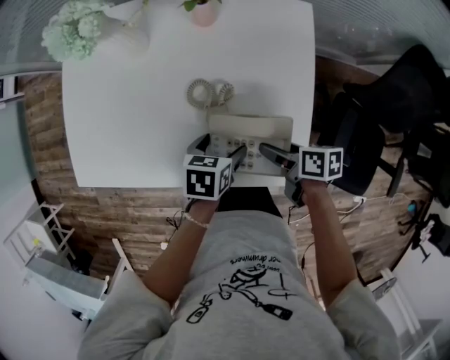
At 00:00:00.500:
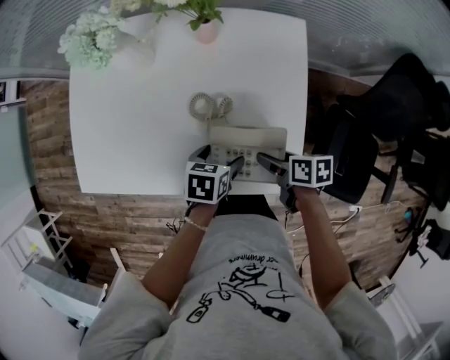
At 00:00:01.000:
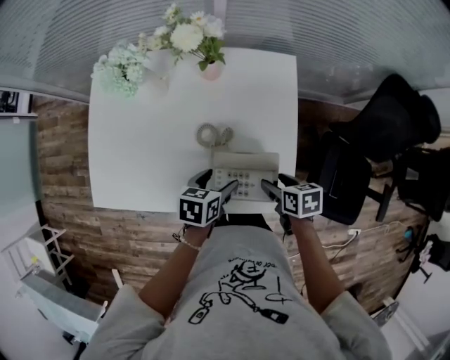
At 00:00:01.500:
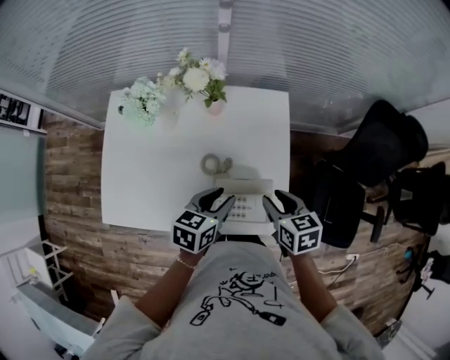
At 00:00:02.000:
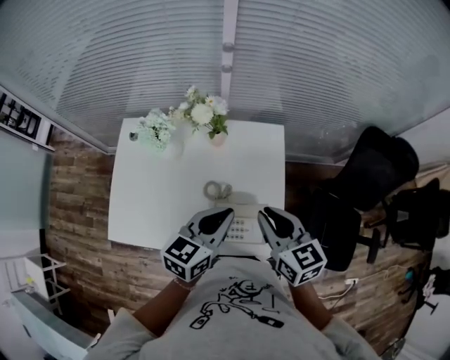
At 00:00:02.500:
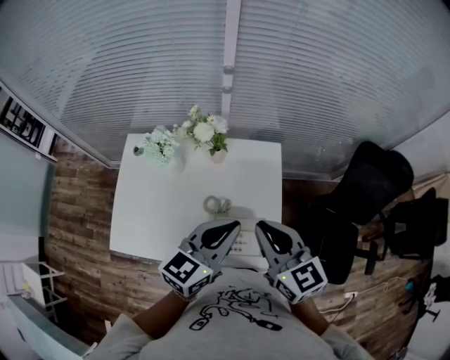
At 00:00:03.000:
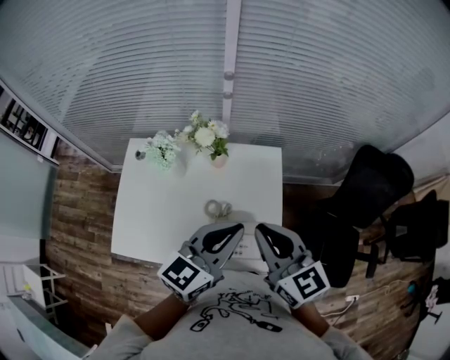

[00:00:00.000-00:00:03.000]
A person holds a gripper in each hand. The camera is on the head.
00:00:00.000 to 00:00:01.500: The grippers both shift upward by roughly 15 cm. The right gripper swivels some 40 degrees, and closes its fingers, while the left gripper changes its angle by some 20 degrees, and closes.
00:00:01.500 to 00:00:03.000: Both grippers travel together upward, some 25 cm. The left gripper swivels approximately 30 degrees, and closes up. The right gripper angles its fingers upward, by about 30 degrees, and closes.

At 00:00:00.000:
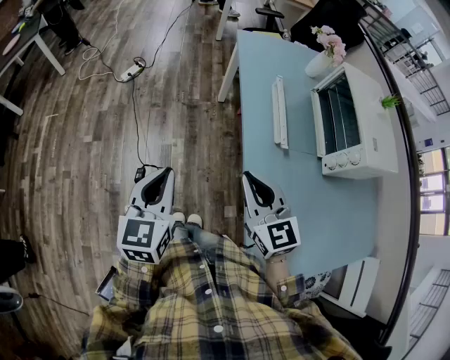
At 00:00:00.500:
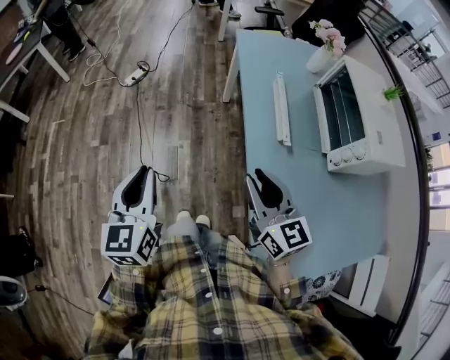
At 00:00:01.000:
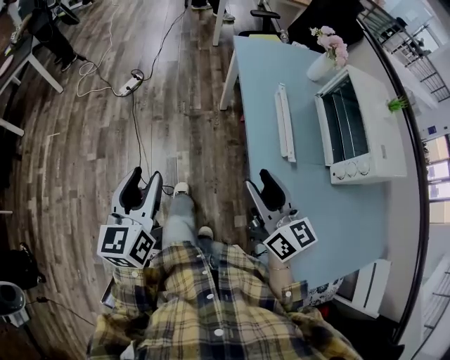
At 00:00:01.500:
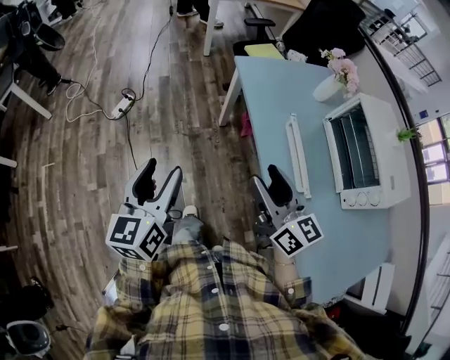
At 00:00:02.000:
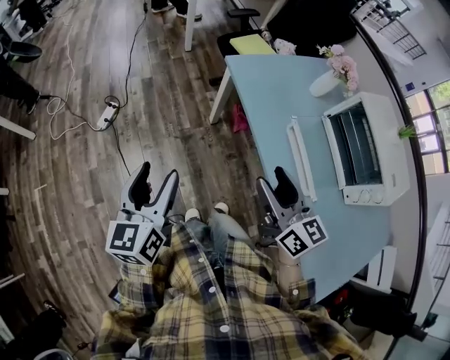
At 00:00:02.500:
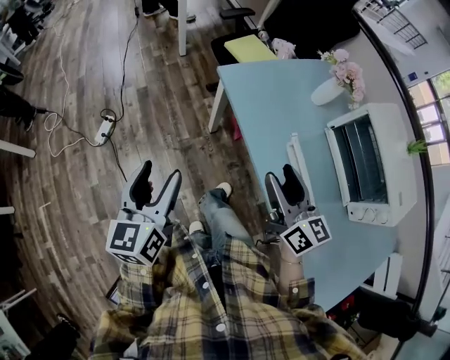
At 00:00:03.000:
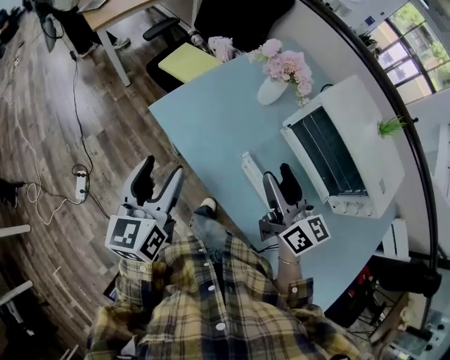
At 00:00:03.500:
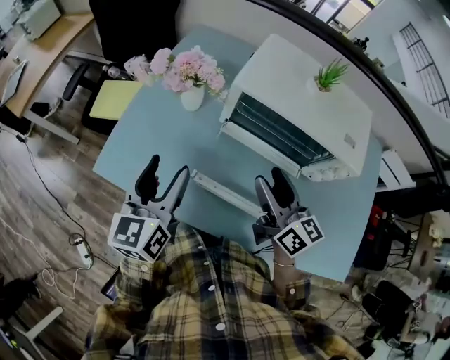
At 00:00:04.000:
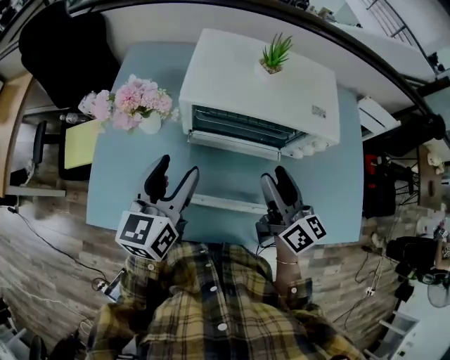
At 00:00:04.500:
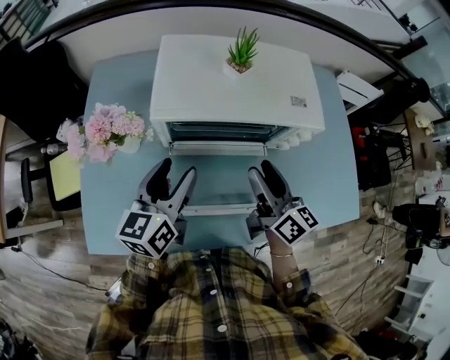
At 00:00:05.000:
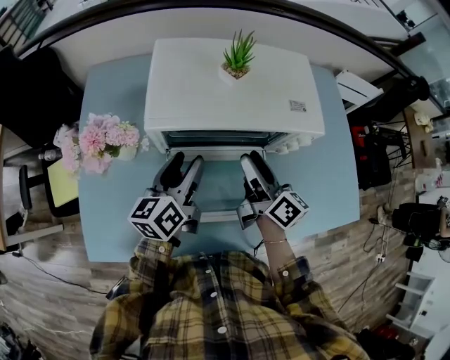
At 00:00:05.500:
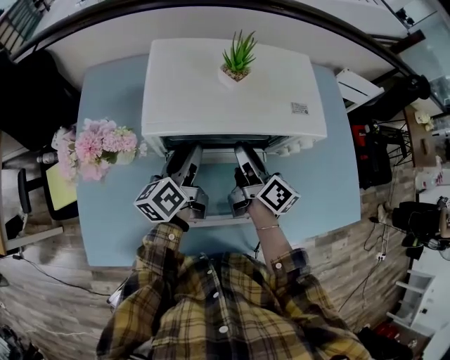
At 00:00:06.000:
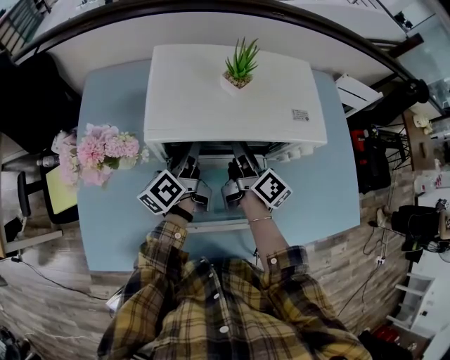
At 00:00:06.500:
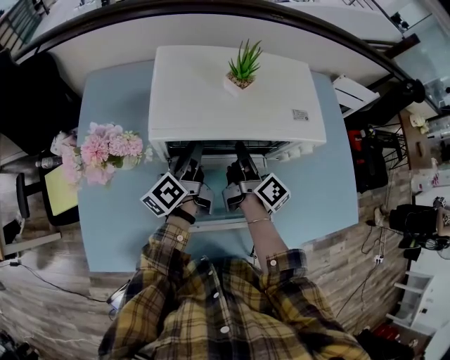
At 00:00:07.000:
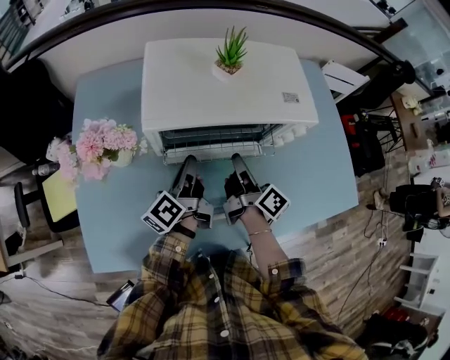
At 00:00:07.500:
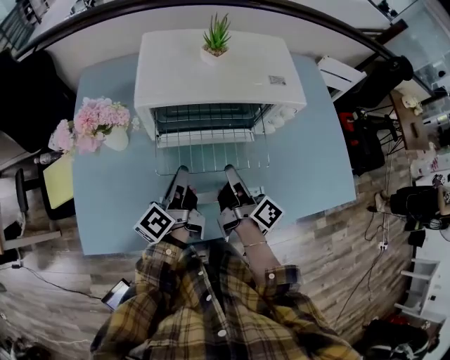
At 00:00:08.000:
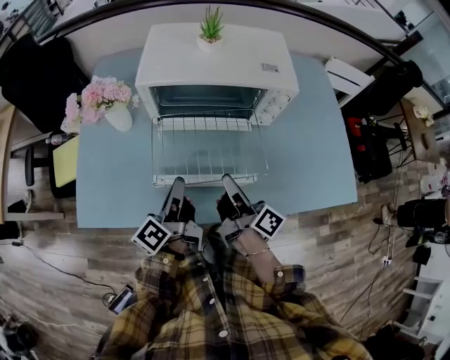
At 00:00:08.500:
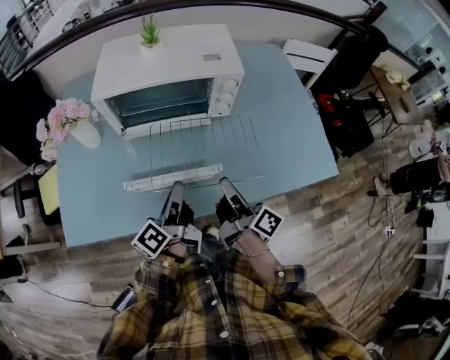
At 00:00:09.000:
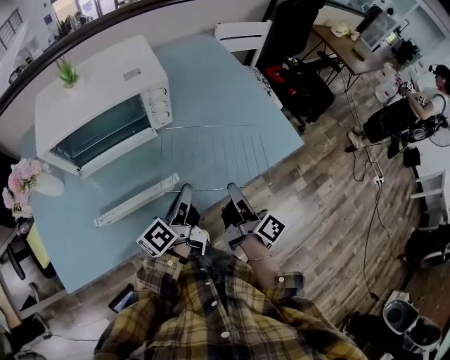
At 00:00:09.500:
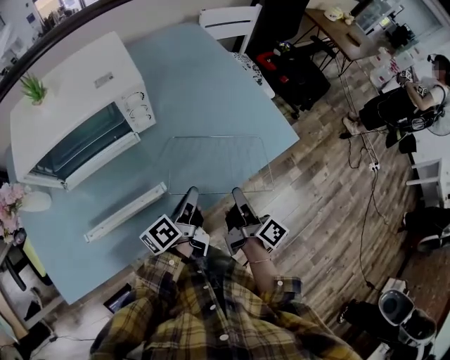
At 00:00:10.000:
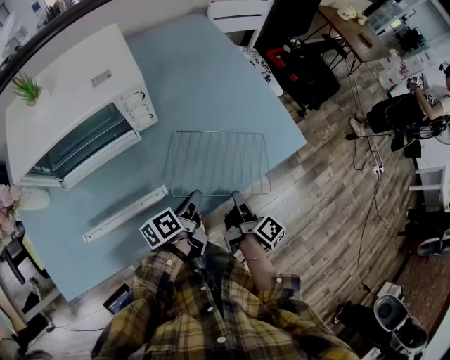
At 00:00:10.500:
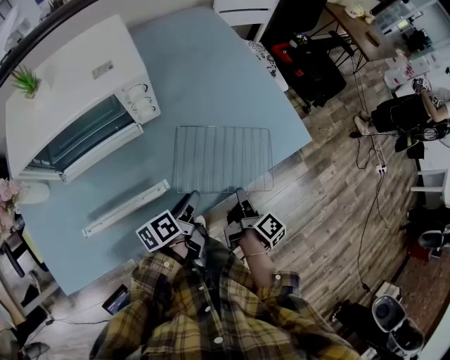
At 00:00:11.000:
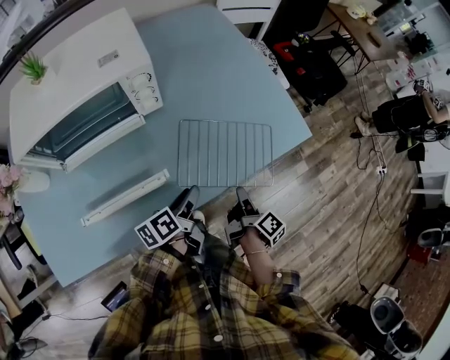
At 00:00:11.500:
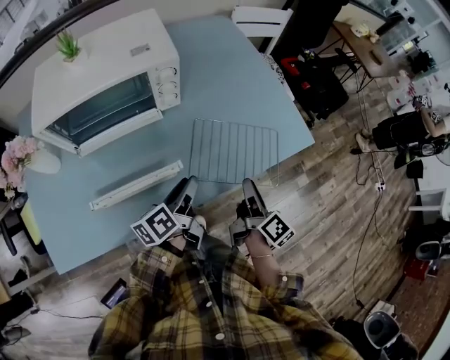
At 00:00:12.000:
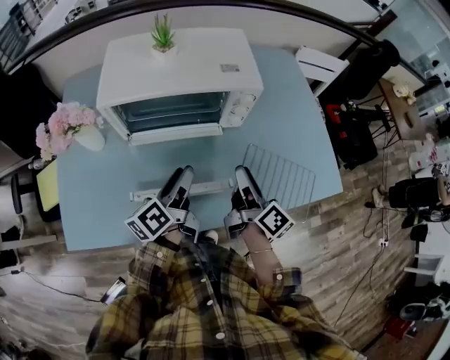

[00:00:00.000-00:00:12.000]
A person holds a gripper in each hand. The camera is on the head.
00:00:00.000 to 00:00:02.000: The grippers both shift forward by about 30 cm. The left gripper opens its fingers. The right gripper rotates some 30 degrees, and opens up.
00:00:02.000 to 00:00:04.000: The right gripper moves some 35 cm, and turns by about 70 degrees. Meanwhile the left gripper shifts by about 60 cm, and turns by approximately 70 degrees.
00:00:04.000 to 00:00:06.000: Both grippers travel together forward and downward, some 20 cm. The left gripper rotates around the line of its fingers by roughly 40 degrees, counterclockwise from behind, and closes up; the right gripper turns by roughly 30 degrees.
00:00:06.000 to 00:00:08.000: The two grippers go roughly 25 cm backward. The right gripper closes up, while the left gripper closes.
00:00:08.000 to 00:00:10.000: The left gripper moves roughly 35 cm, and rotates roughly 50 degrees. The right gripper ends up about 35 cm from where it was, and swivels about 50 degrees.
00:00:10.000 to 00:00:12.000: The right gripper changes place by approximately 25 cm, swivels approximately 40 degrees, and opens up. The left gripper shifts by about 25 cm, rotates about 30 degrees, and opens its fingers.

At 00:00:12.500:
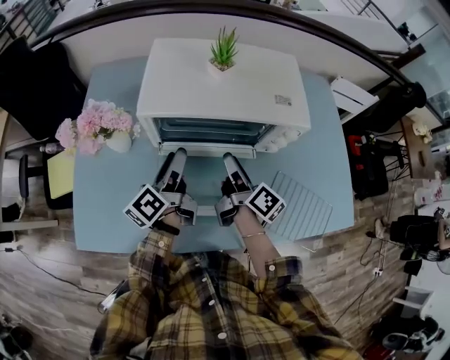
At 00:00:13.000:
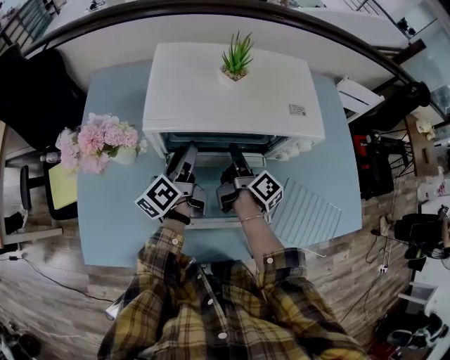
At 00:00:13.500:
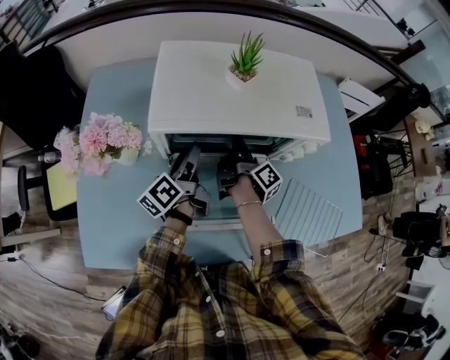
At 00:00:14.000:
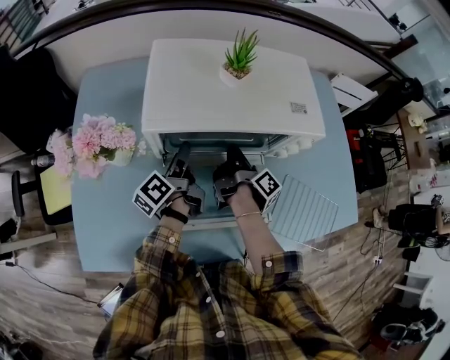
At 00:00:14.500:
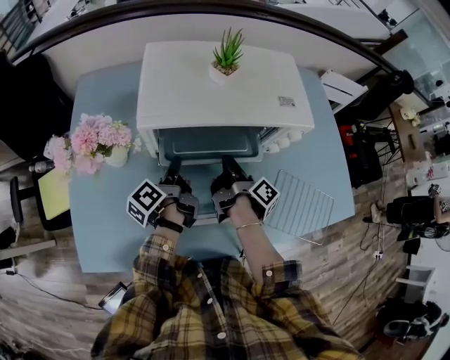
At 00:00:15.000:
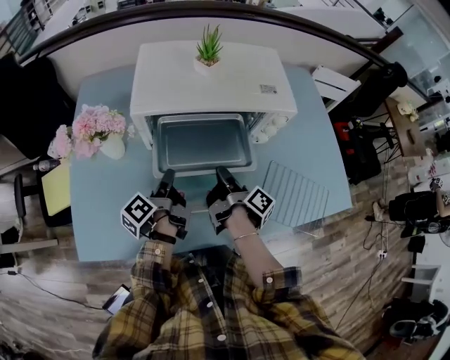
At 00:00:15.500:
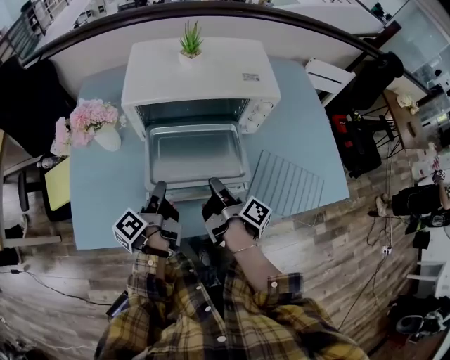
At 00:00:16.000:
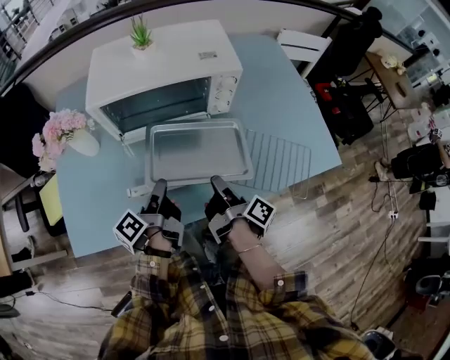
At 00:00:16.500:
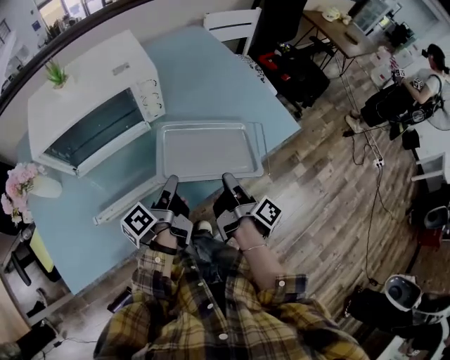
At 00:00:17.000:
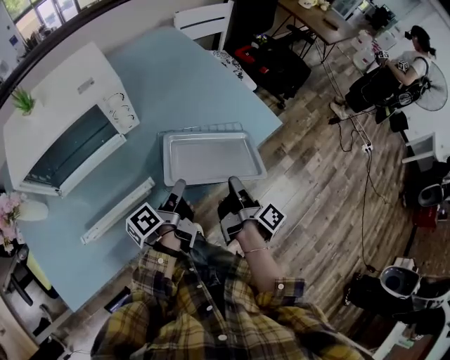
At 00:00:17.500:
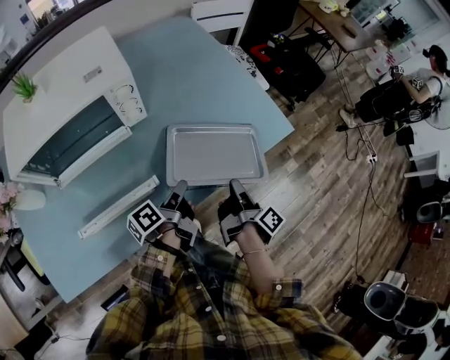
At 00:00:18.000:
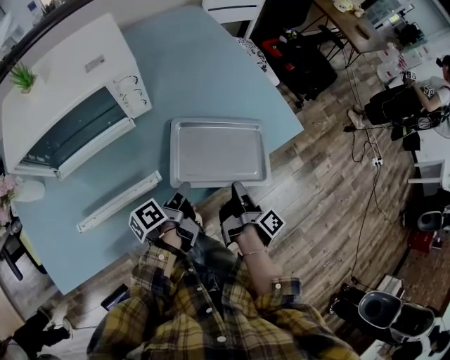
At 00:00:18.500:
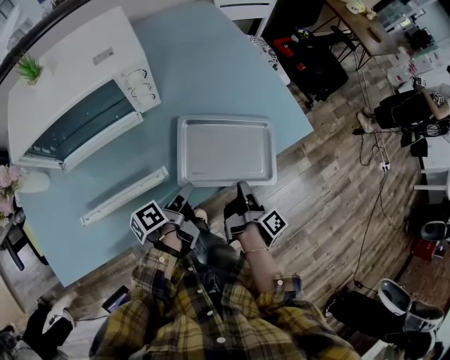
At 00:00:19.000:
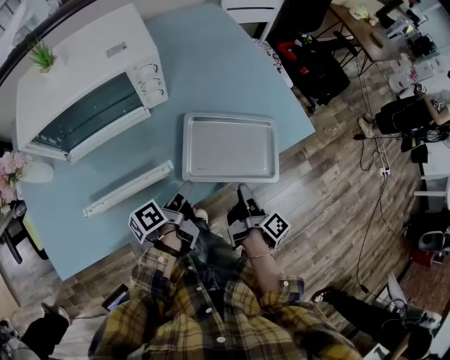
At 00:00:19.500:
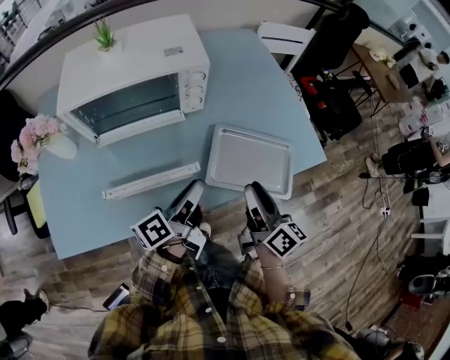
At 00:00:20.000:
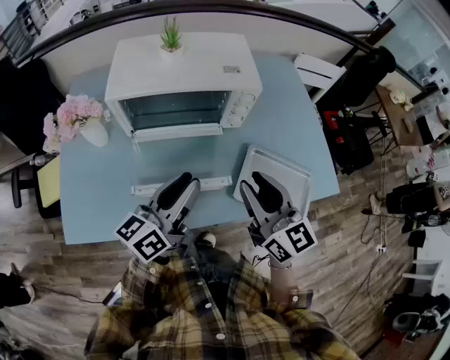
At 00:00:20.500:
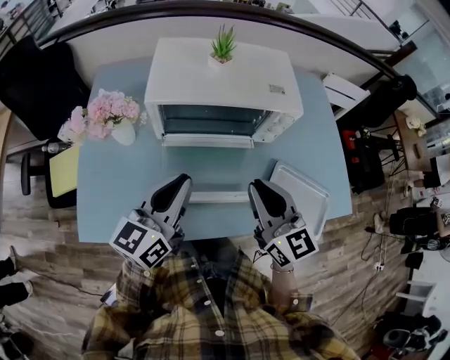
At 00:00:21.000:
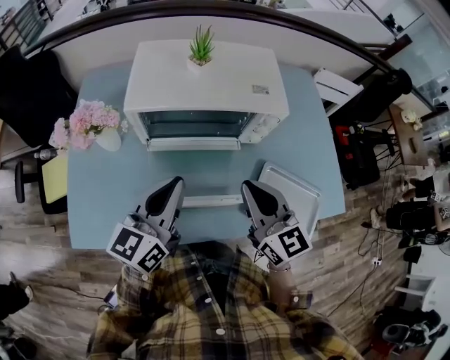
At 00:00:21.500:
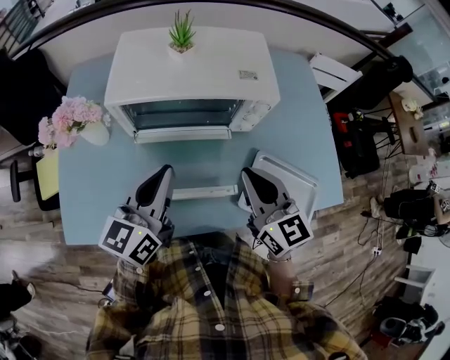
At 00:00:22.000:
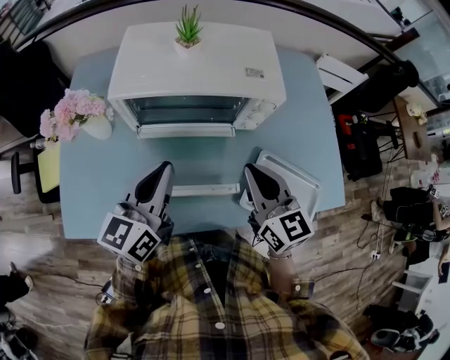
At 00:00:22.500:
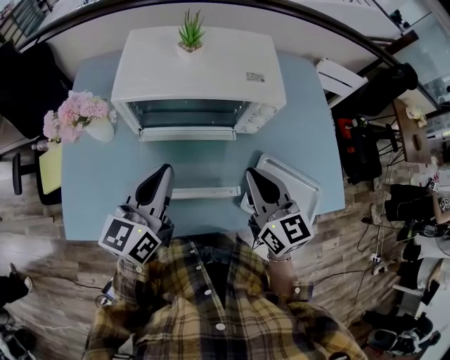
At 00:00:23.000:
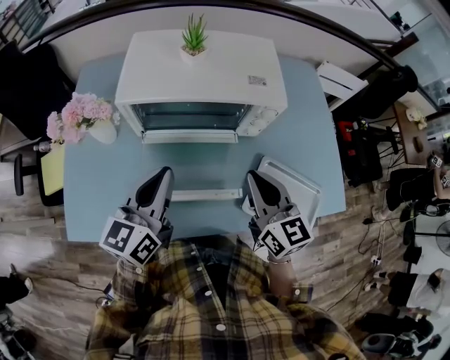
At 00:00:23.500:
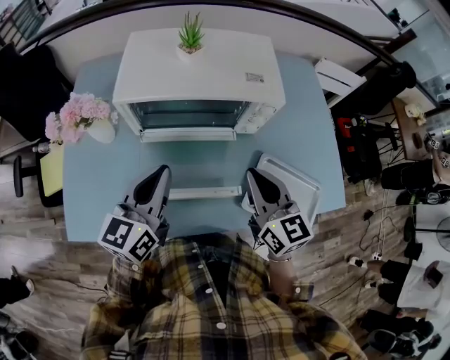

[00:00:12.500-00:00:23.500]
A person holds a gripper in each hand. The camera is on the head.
00:00:12.500 to 00:00:14.500: Both grippers move downward, about 10 cm. The right gripper reaches some 10 cm forward, then returns, swivels approximately 30 degrees, and closes up. Meanwhile the left gripper swivels some 20 degrees, and closes its fingers.
00:00:14.500 to 00:00:16.000: The two grippers go about 20 cm backward and to the right.
00:00:16.000 to 00:00:18.000: The right gripper shifts by some 30 cm, and rotates about 30 degrees. Meanwhile the left gripper moves approximately 30 cm, and rotates some 30 degrees.
00:00:18.000 to 00:00:20.000: The grippers both shift upward by roughly 25 cm. The left gripper rolls clockwise, seen from behind, by about 50 degrees. Meanwhile the right gripper twists some 90 degrees counterclockwise, seen from behind, and opens.
00:00:20.000 to 00:00:21.500: The left gripper goes roughly 10 cm forward and to the left, rotates about 20 degrees, and closes; the right gripper shifts roughly 5 cm forward, goes to the left and returns, approximately 10 cm each way, and closes.
00:00:21.500 to 00:00:23.500: The grippers stay close to where they were, moving slightly.
